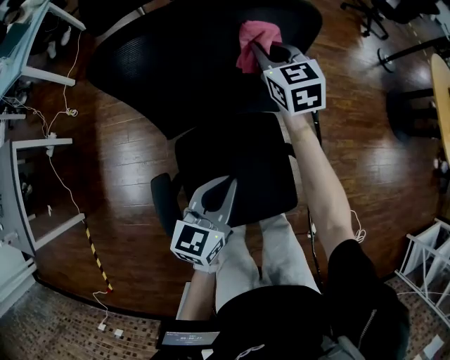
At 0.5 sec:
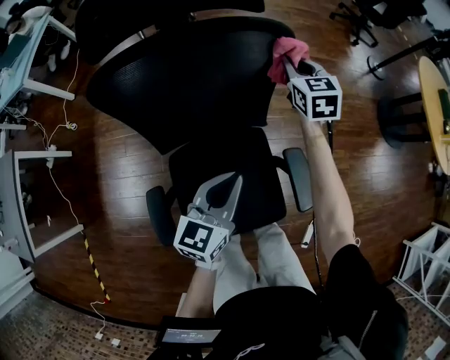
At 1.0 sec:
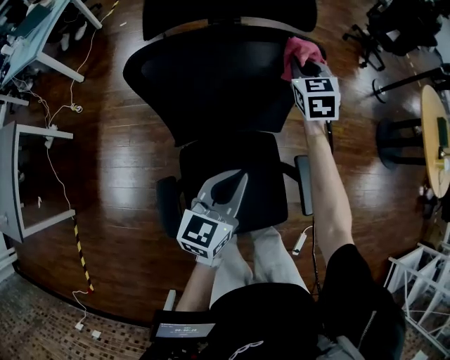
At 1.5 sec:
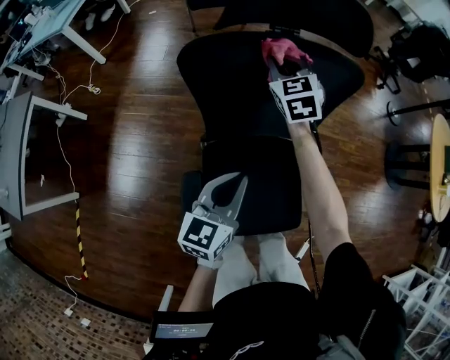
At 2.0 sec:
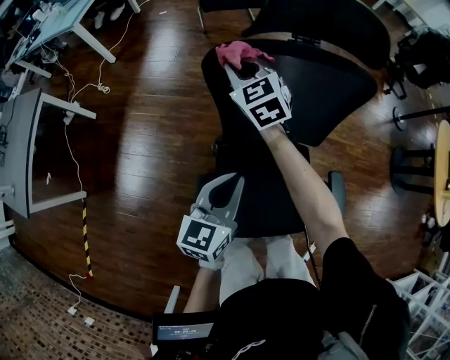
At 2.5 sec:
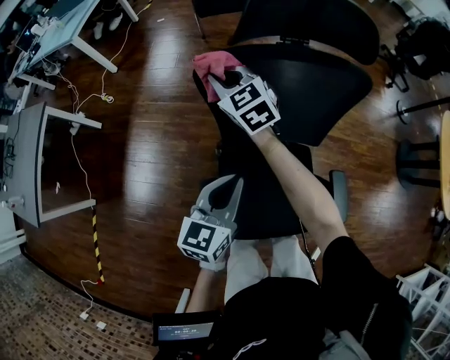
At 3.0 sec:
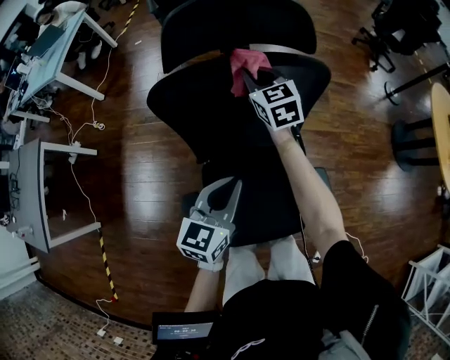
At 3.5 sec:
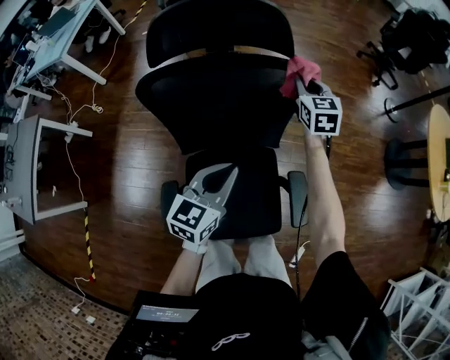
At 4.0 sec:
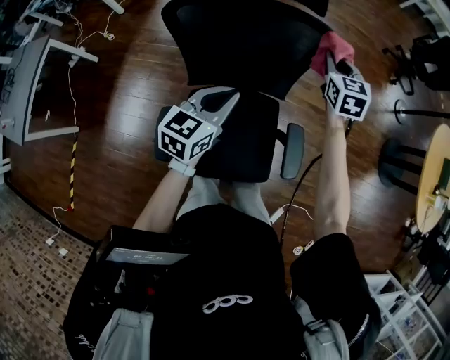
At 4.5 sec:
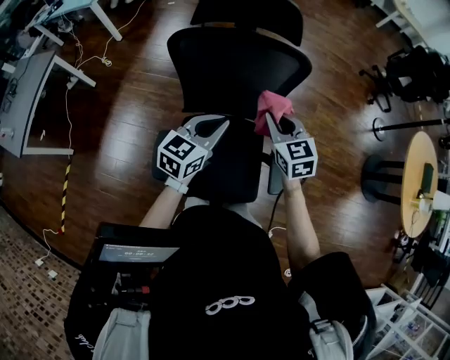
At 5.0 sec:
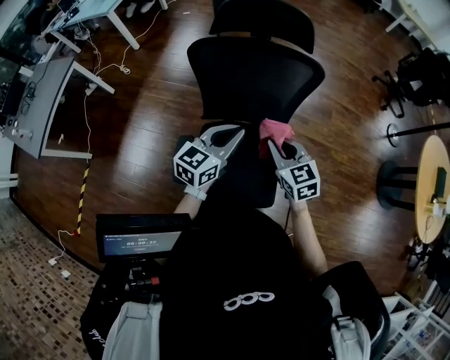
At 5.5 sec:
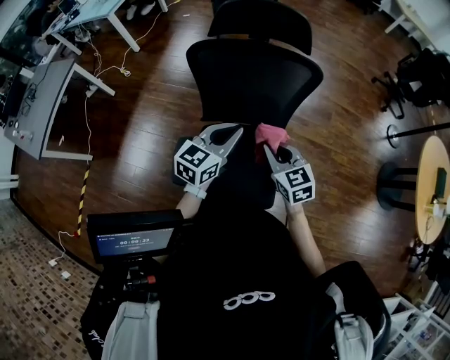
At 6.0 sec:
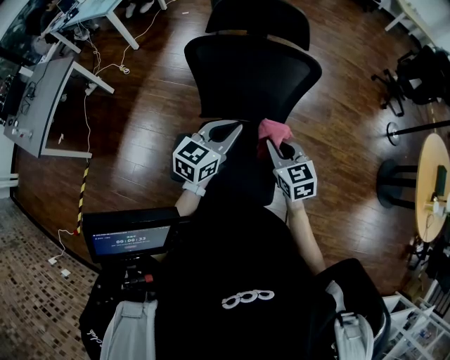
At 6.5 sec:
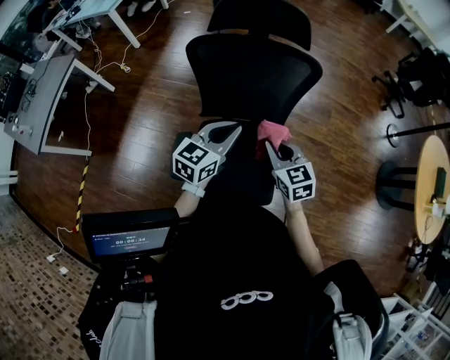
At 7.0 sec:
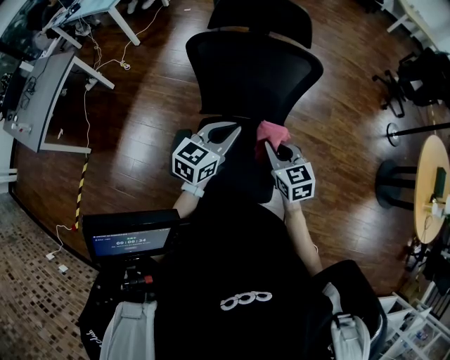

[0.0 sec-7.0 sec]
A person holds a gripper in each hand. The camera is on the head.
0.0 sec to 2.0 sec: The right gripper heads to the left, covering about 30 cm, and changes its angle by approximately 20 degrees. Meanwhile the left gripper shifts some 15 cm to the left and upward.
2.0 sec to 3.5 sec: The right gripper heads to the right, covering some 40 cm, and changes its angle by some 30 degrees. Meanwhile the left gripper moves to the right, roughly 20 cm.
3.5 sec to 5.0 sec: The left gripper moves backward, to the left and upward, roughly 10 cm. Meanwhile the right gripper shifts approximately 35 cm backward, and swivels roughly 30 degrees.
5.0 sec to 7.0 sec: The grippers make only small movements.

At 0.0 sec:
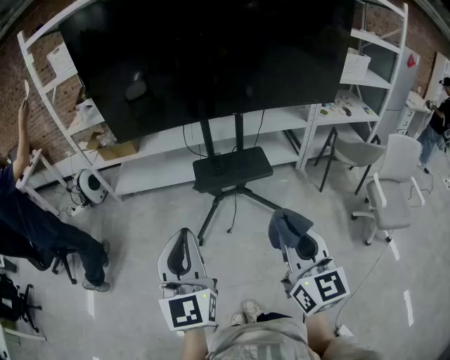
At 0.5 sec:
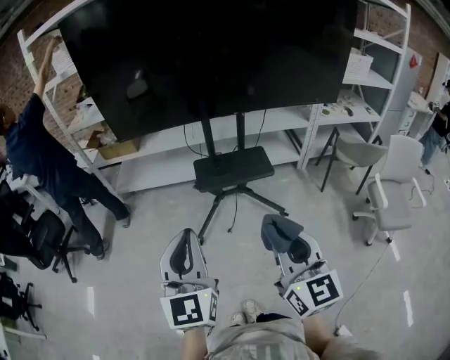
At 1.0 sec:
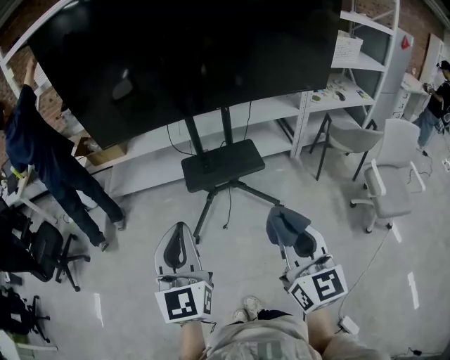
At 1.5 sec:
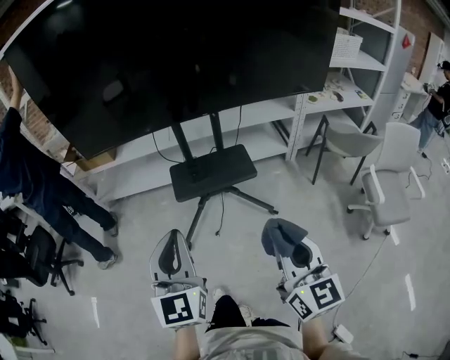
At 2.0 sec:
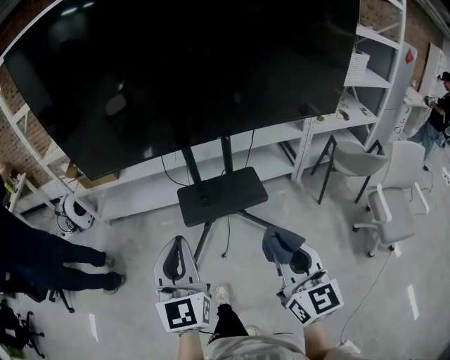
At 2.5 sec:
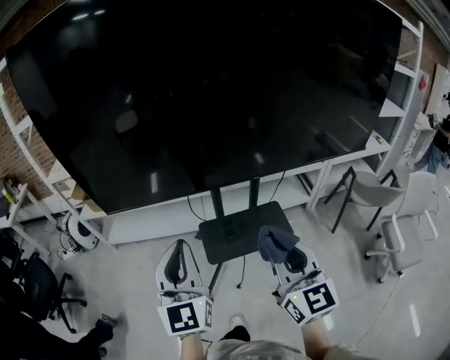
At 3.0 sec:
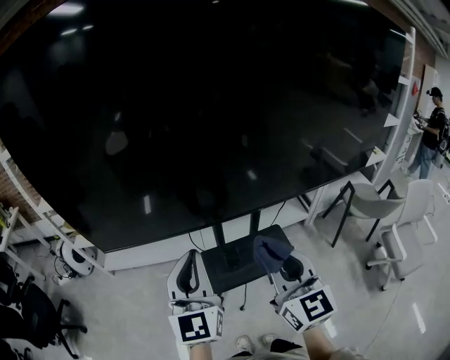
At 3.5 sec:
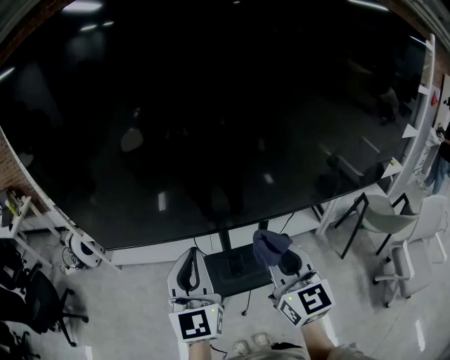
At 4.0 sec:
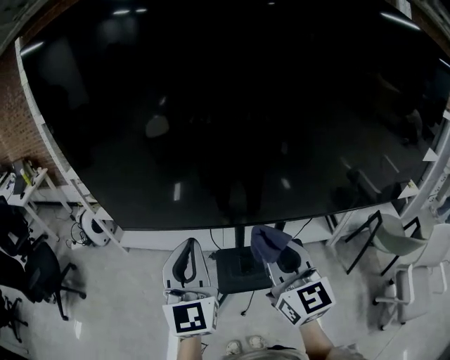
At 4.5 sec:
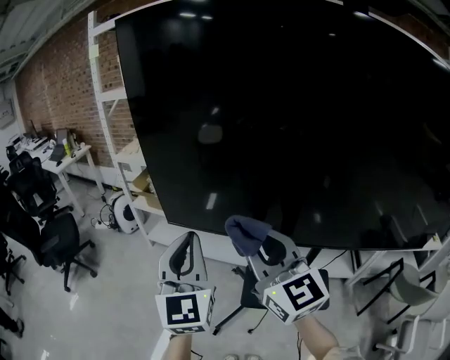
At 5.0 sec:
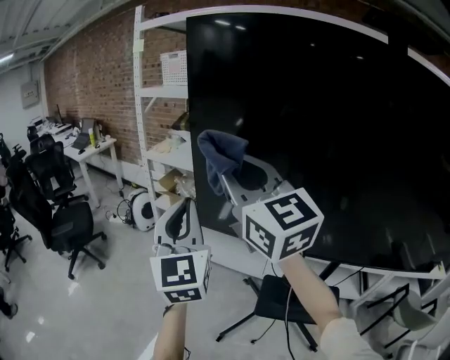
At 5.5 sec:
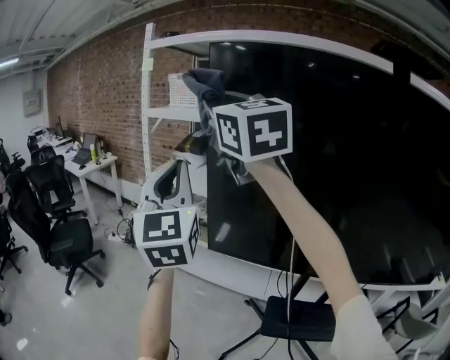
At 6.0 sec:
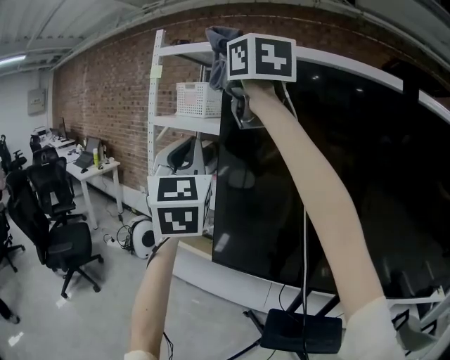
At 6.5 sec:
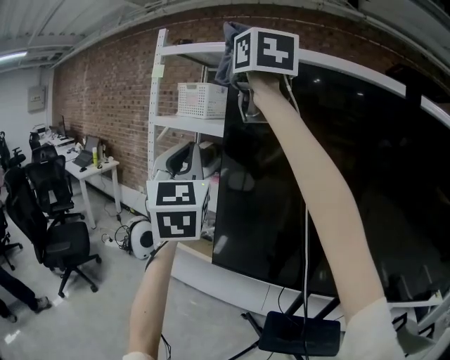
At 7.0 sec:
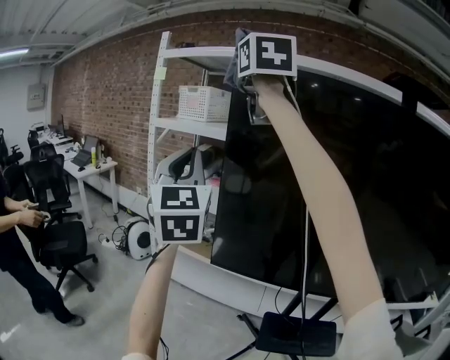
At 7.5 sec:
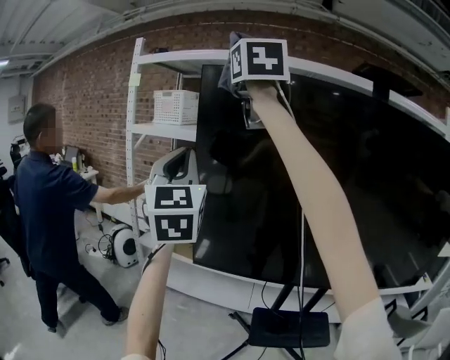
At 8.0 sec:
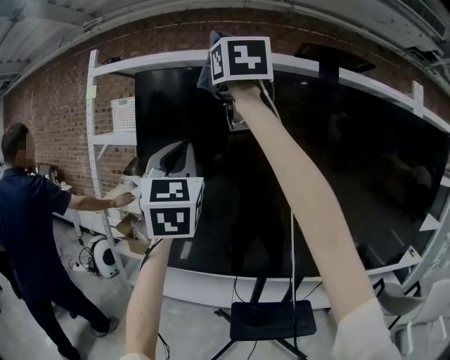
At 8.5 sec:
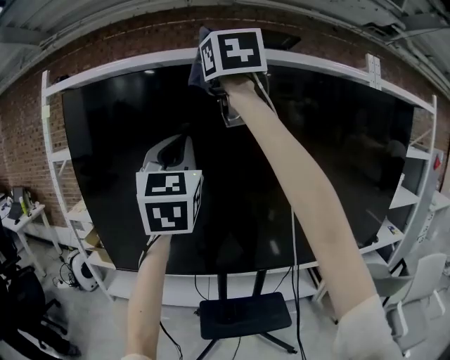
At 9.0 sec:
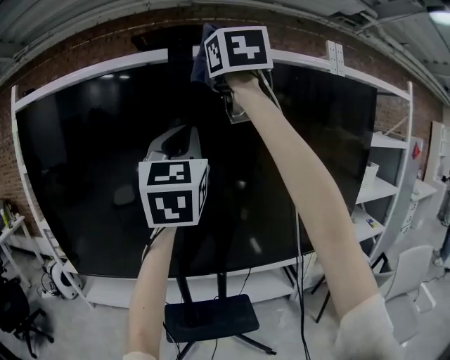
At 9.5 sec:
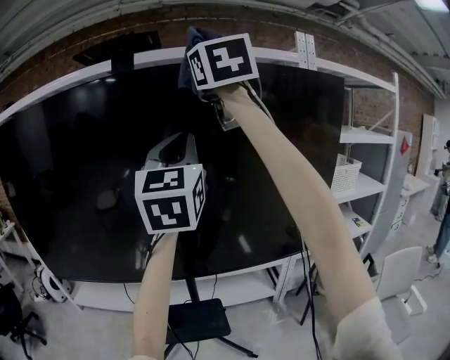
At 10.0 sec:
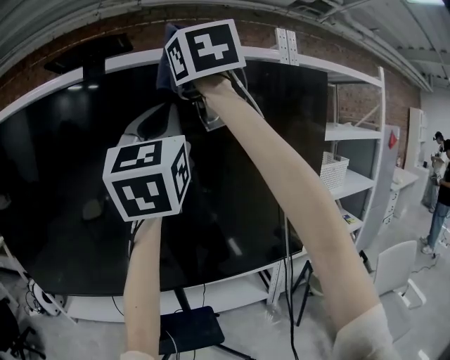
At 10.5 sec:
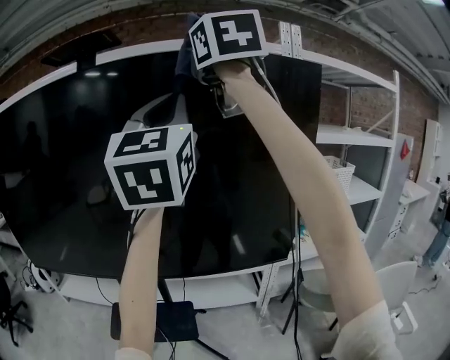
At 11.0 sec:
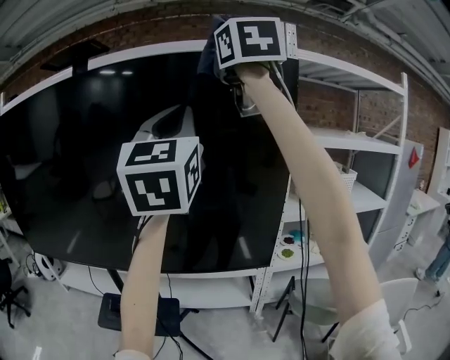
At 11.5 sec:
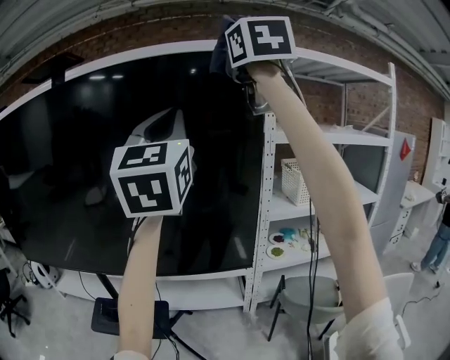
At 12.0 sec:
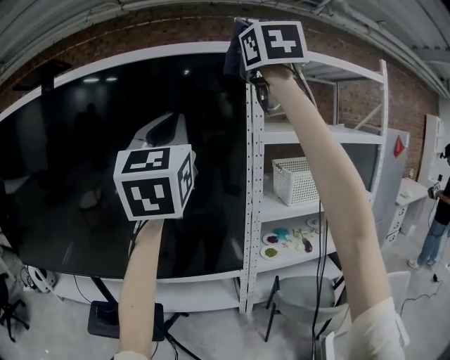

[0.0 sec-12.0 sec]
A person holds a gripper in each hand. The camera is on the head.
0.0 sec to 2.0 sec: The grippers both shift forward by some 20 cm.
2.0 sec to 4.0 sec: The grippers both shift forward by some 30 cm.
4.0 sec to 6.0 sec: The left gripper ends up roughly 50 cm from where it was, and changes its angle by approximately 30 degrees. The right gripper shifts approximately 50 cm upward, and changes its angle by roughly 30 degrees.
6.0 sec to 8.0 sec: Both grippers travel together to the right, roughly 20 cm. The right gripper turns by some 20 degrees.
8.0 sec to 10.0 sec: The pair of grippers is taken to the right, approximately 60 cm. The left gripper swivels about 30 degrees.
10.0 sec to 12.0 sec: The grippers both shift to the right by roughly 35 cm.

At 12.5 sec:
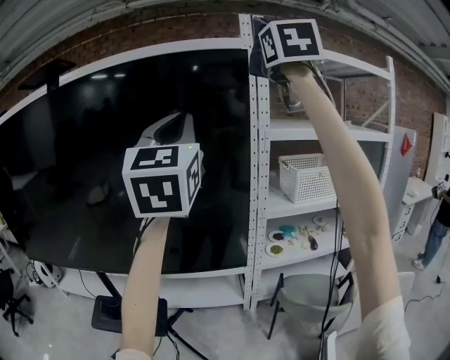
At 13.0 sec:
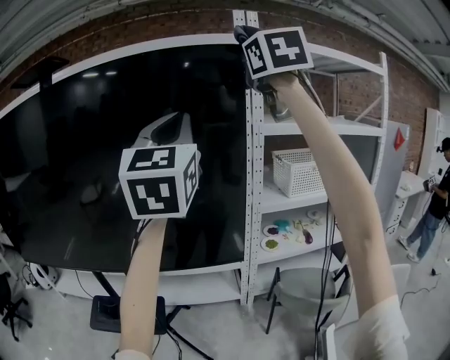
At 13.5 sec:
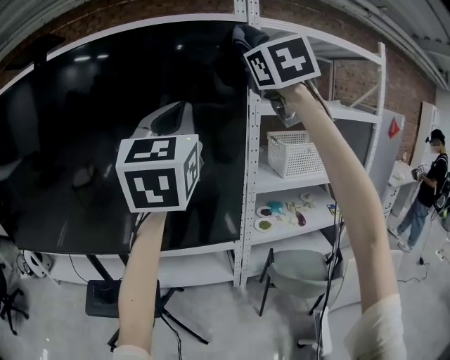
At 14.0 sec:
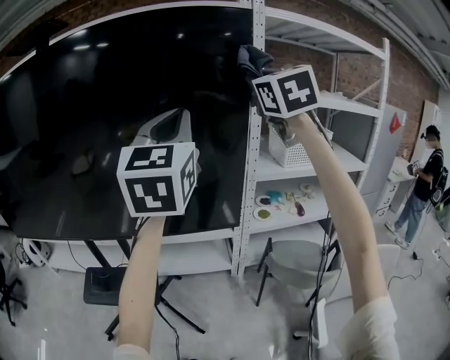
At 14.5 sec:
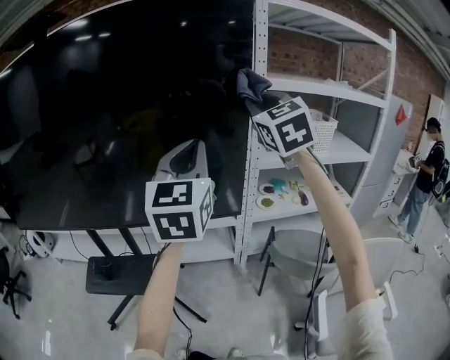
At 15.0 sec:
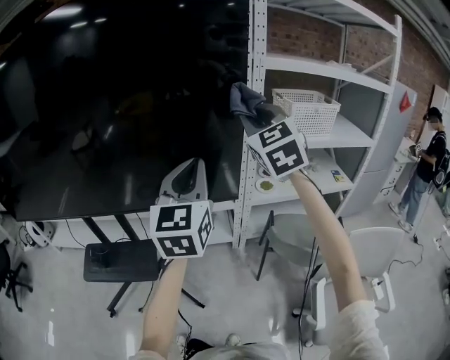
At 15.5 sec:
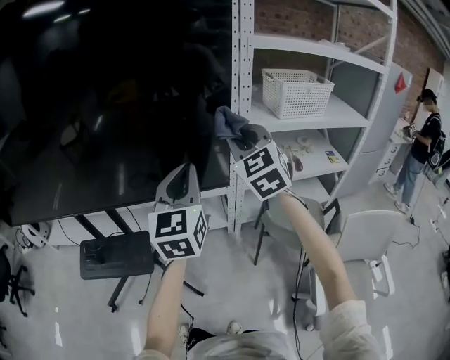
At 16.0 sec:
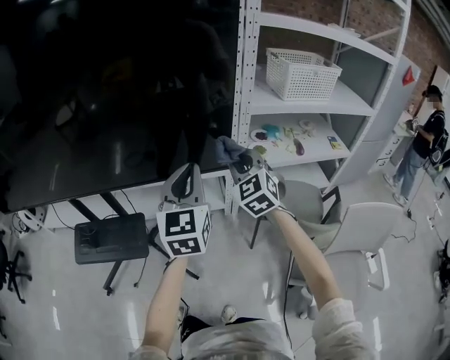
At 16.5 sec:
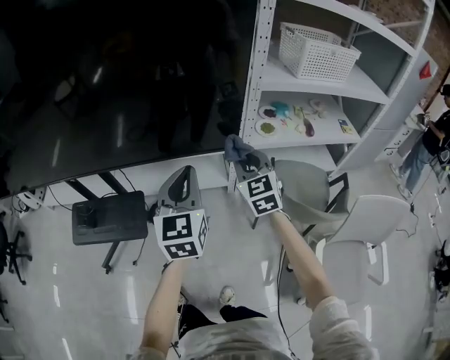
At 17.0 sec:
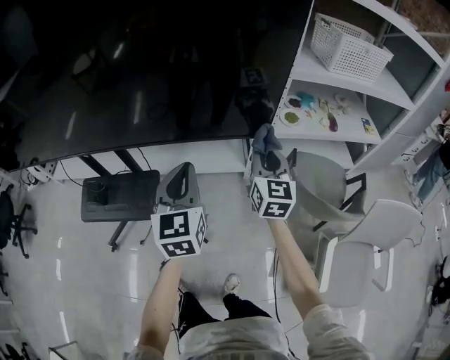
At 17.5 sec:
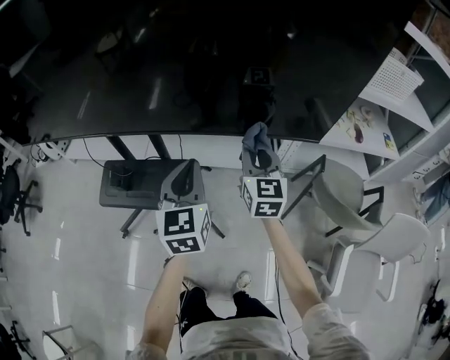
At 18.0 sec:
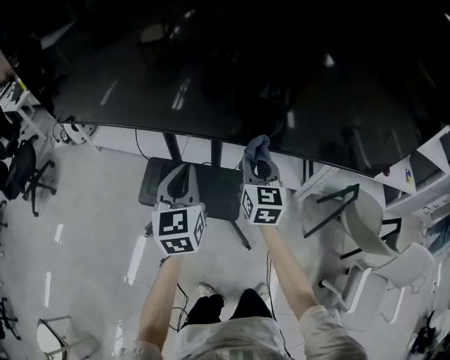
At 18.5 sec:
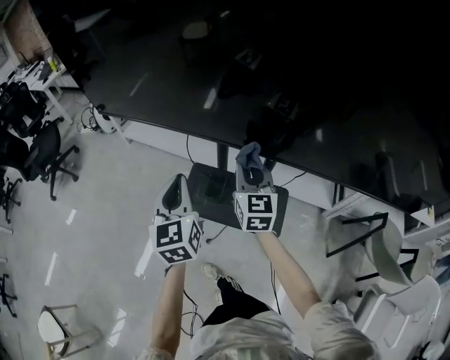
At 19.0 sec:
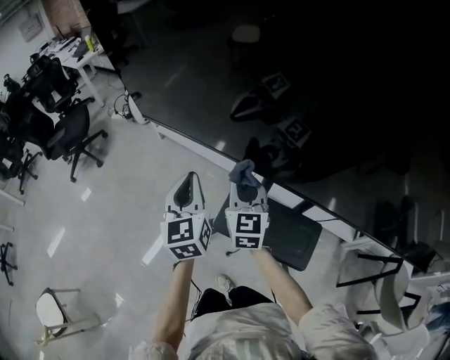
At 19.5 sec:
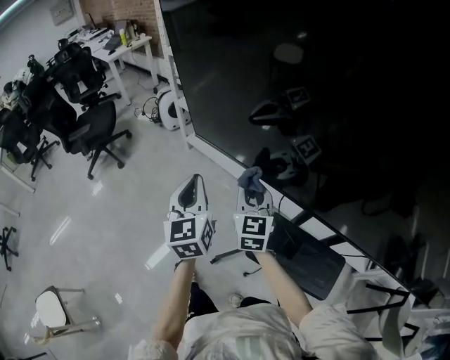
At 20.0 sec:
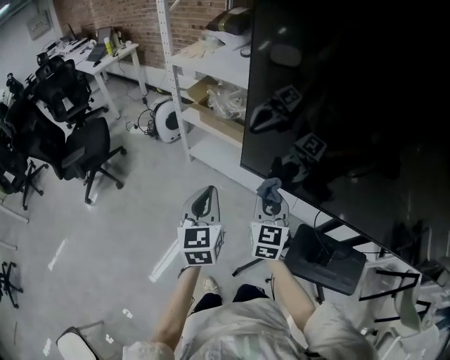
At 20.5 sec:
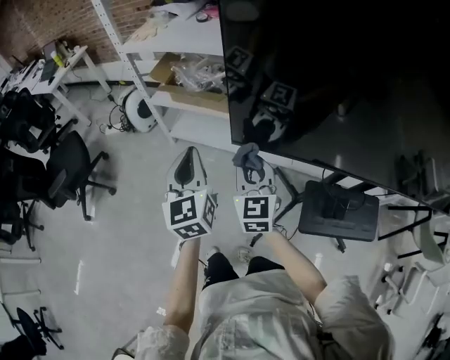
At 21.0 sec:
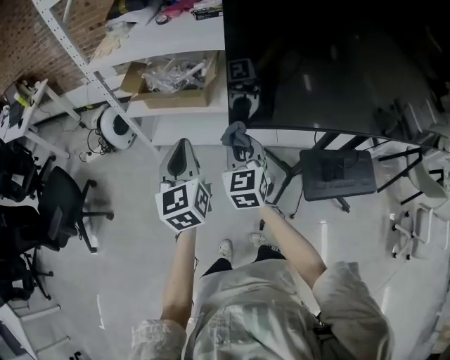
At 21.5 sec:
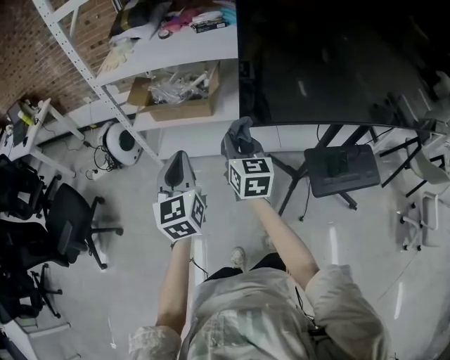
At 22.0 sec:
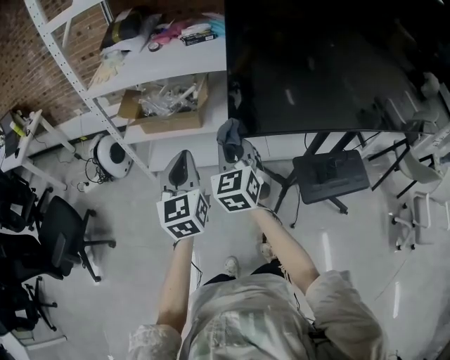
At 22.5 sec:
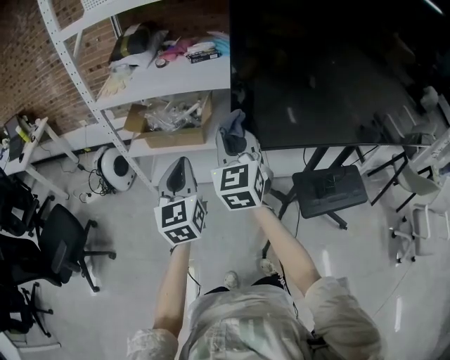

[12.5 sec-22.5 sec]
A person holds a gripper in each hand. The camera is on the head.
12.5 sec to 14.5 sec: Both grippers move downward, some 25 cm. The right gripper rotates some 20 degrees.
14.5 sec to 16.5 sec: The grippers both shift downward by about 35 cm. The left gripper rotates roughly 20 degrees; the right gripper swivels about 20 degrees.
16.5 sec to 18.5 sec: Both grippers are carried some 60 cm. The left gripper swivels some 30 degrees. The right gripper changes its angle by roughly 20 degrees.
18.5 sec to 20.5 sec: Both grippers are carried to the left and forward, roughly 50 cm.
20.5 sec to 22.5 sec: The left gripper travels upward by some 5 cm, and changes its angle by roughly 20 degrees, while the right gripper goes some 15 cm upward, and swivels approximately 20 degrees.
